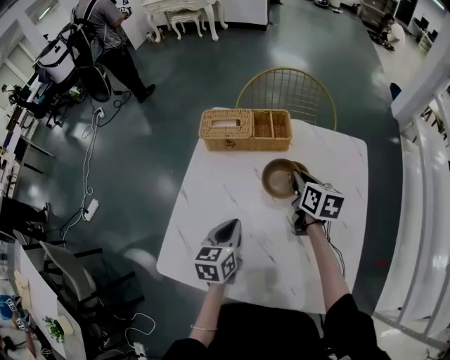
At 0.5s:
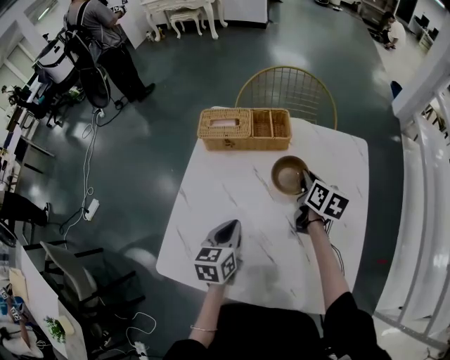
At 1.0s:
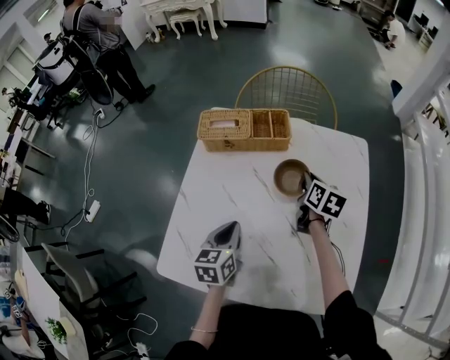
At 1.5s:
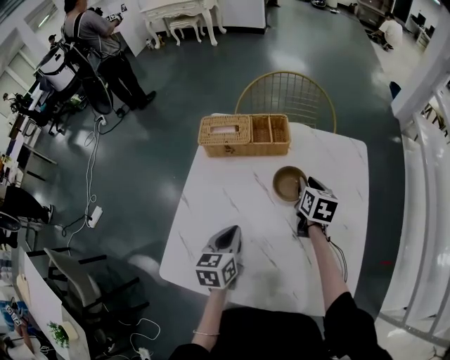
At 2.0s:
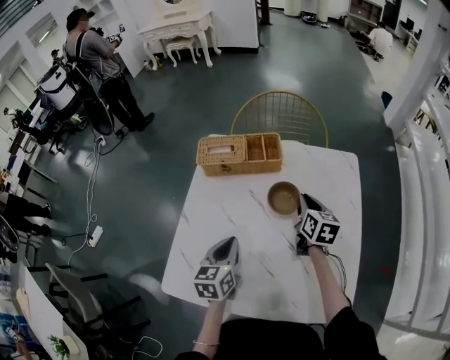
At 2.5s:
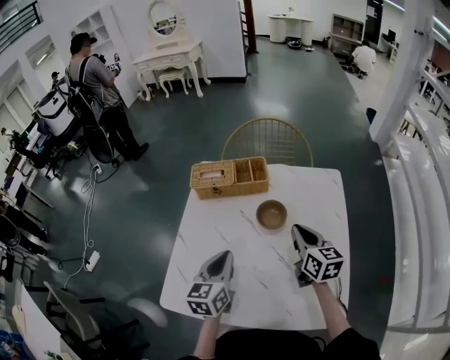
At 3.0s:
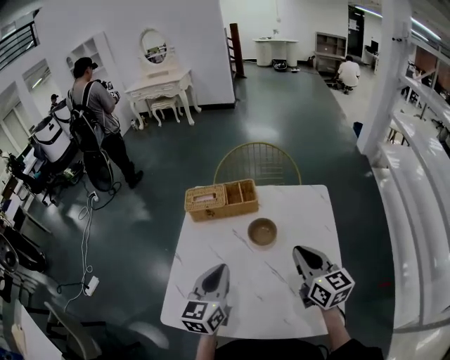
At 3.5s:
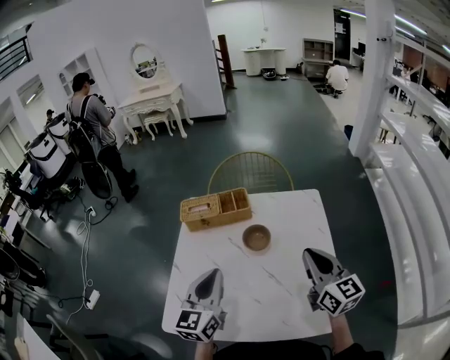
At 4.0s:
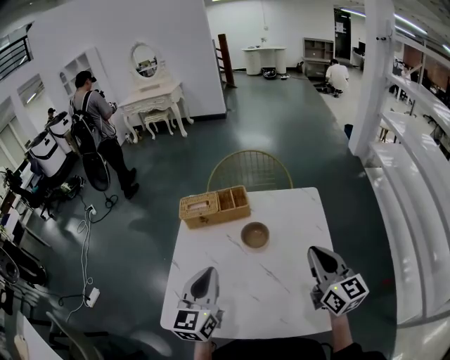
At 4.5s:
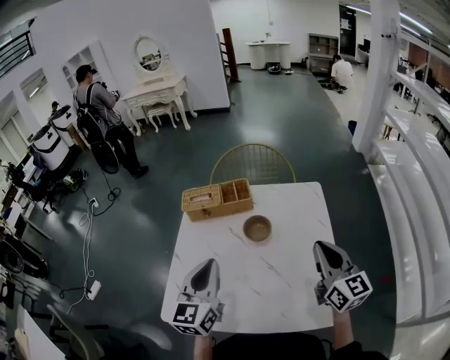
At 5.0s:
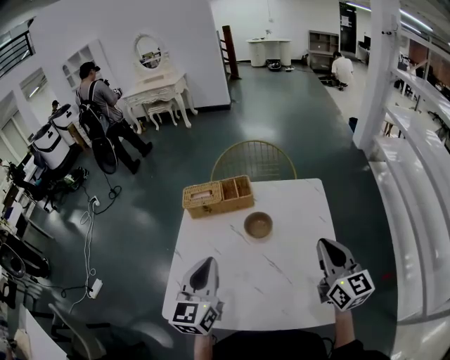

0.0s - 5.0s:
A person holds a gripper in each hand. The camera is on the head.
0.0s - 2.5s: The left gripper moves upward, some 10 cm, while the right gripper moves backward and upward, some 10 cm.
2.5s - 5.0s: The left gripper moves upward and backward, some 15 cm; the right gripper shifts approximately 20 cm backward, upward and to the right, and changes its angle by some 20 degrees.

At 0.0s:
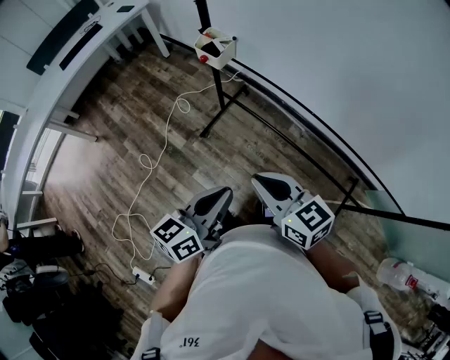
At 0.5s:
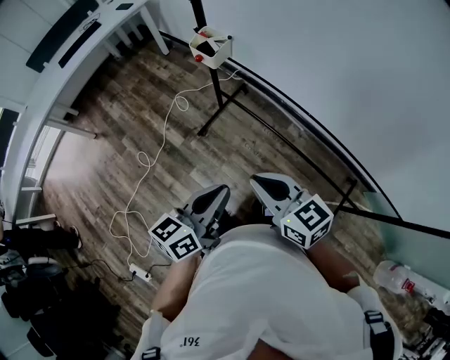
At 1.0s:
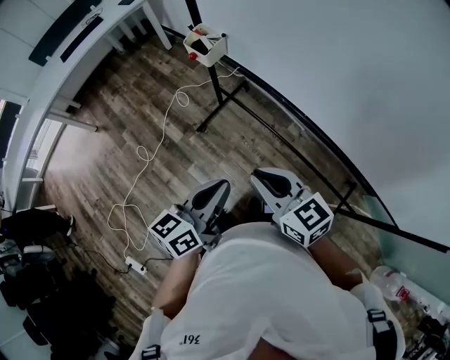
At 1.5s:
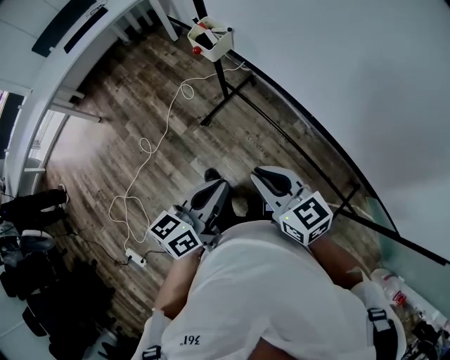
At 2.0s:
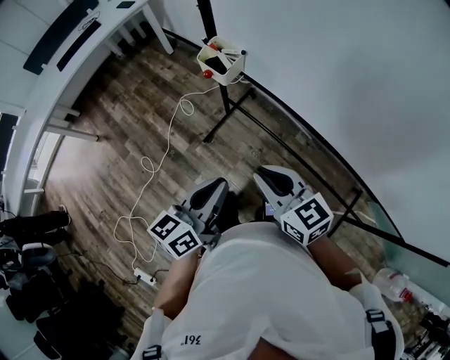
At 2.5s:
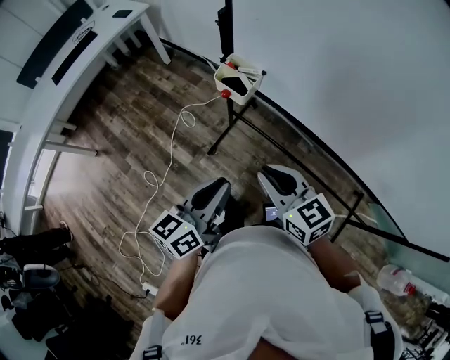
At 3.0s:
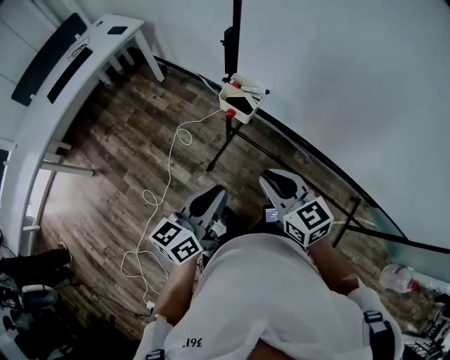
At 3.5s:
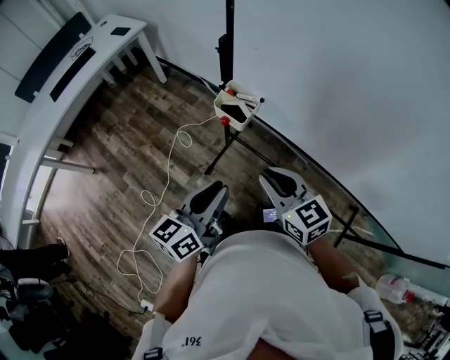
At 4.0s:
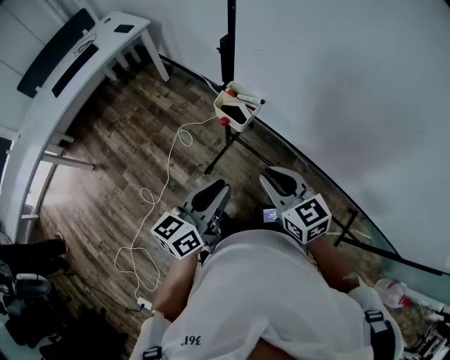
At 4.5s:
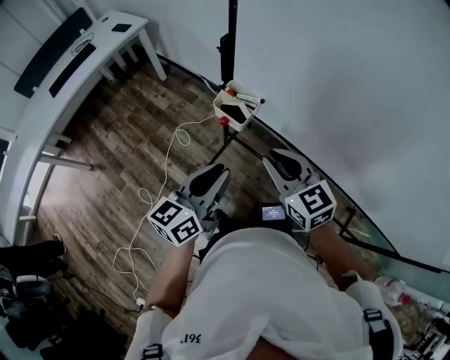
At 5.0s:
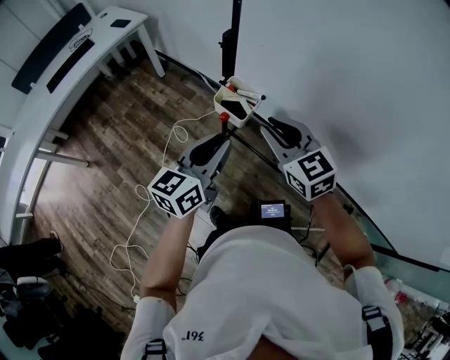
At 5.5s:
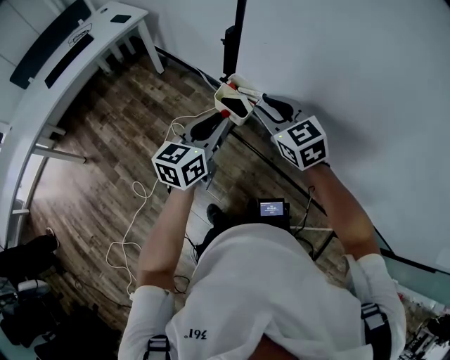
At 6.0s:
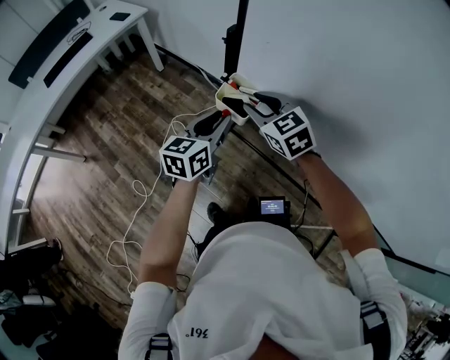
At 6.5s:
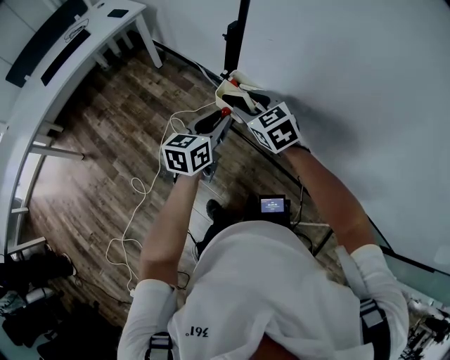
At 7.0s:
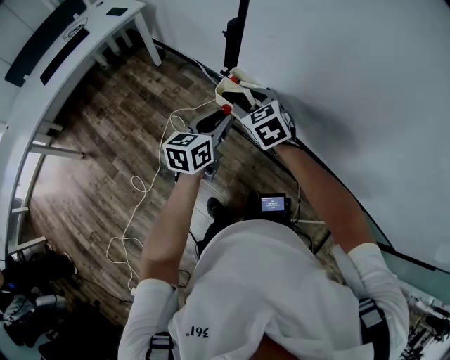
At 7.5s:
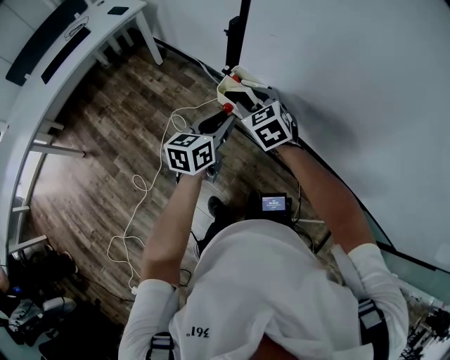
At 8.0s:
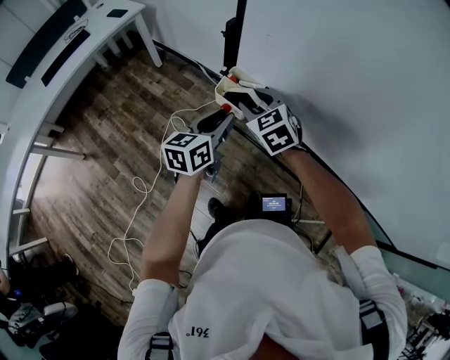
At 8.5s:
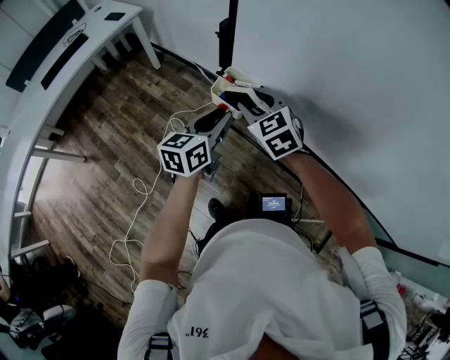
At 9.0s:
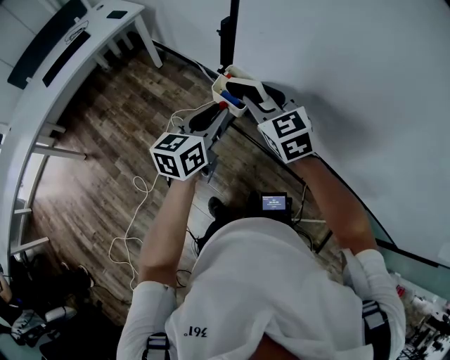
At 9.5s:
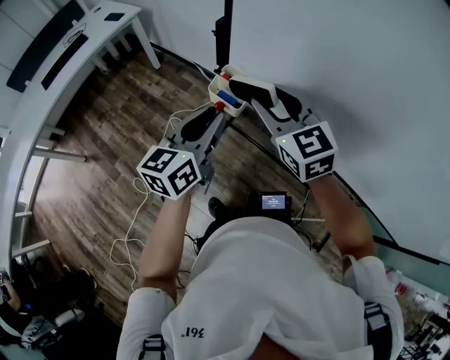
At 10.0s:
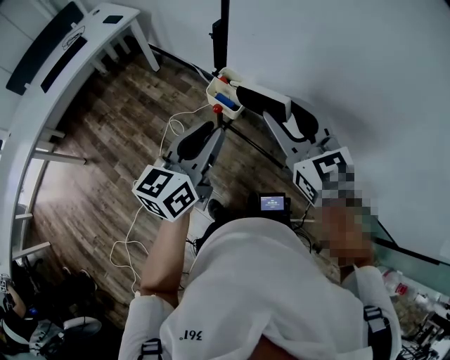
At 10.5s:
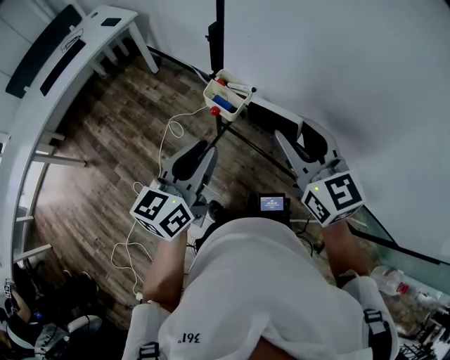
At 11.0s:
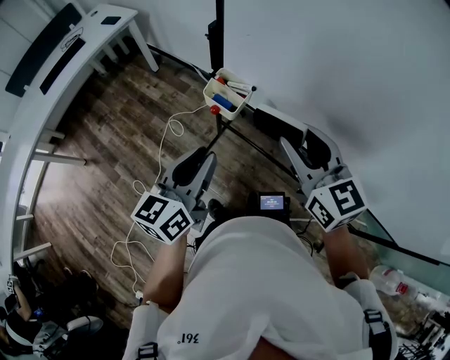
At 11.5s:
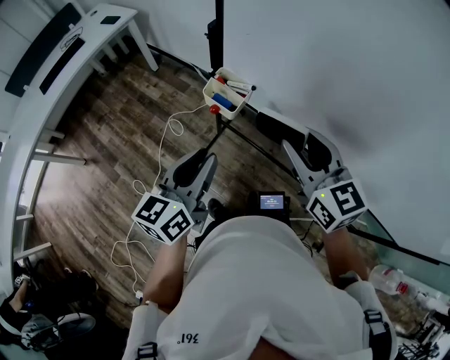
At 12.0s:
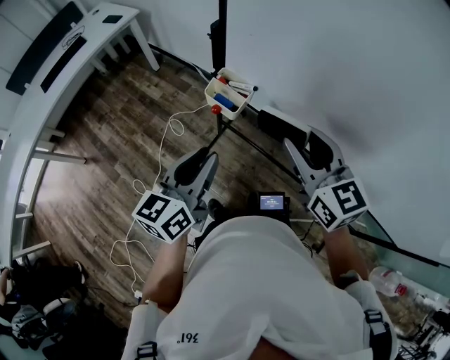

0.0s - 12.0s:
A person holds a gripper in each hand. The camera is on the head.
0.0s - 2.0s: The grippers both shift forward by roughly 15 cm.
2.0s - 4.0s: The left gripper goes approximately 15 cm forward and to the left. The right gripper heads forward, covering about 15 cm.
4.0s - 6.0s: Both grippers travel together forward, roughly 15 cm.
8.0s - 10.0s: Both grippers travel together upward and backward, approximately 15 cm. The right gripper changes its angle by roughly 30 degrees.
10.0s - 12.0s: The right gripper heads to the right, covering approximately 5 cm; the left gripper moves approximately 5 cm.

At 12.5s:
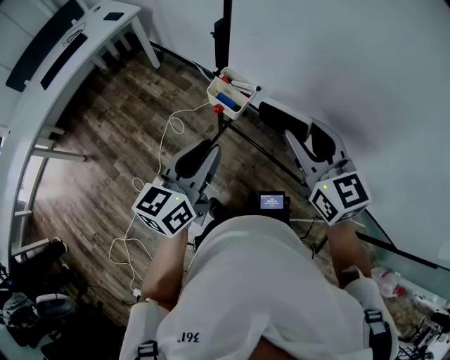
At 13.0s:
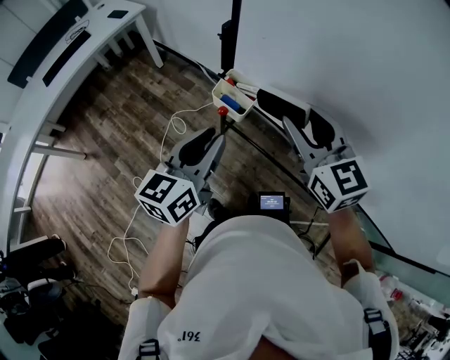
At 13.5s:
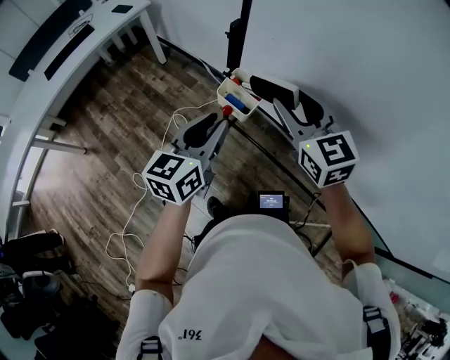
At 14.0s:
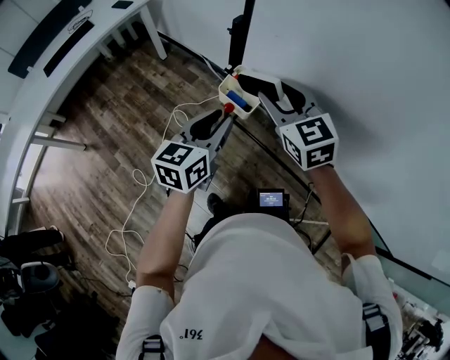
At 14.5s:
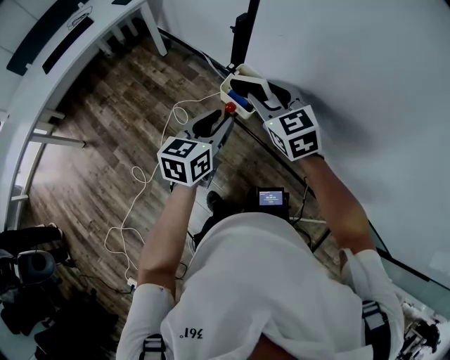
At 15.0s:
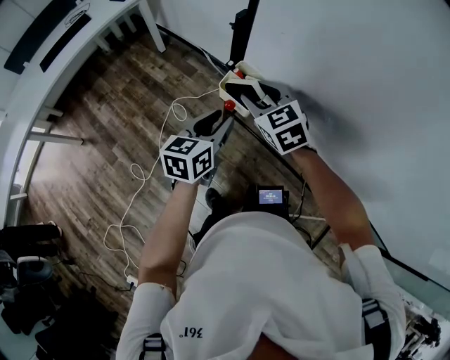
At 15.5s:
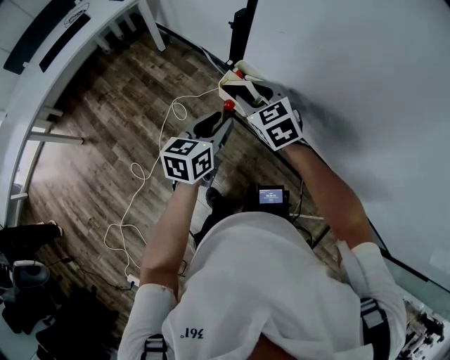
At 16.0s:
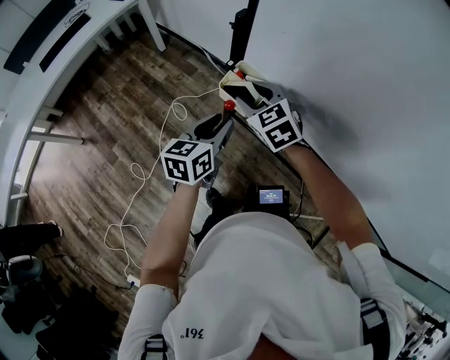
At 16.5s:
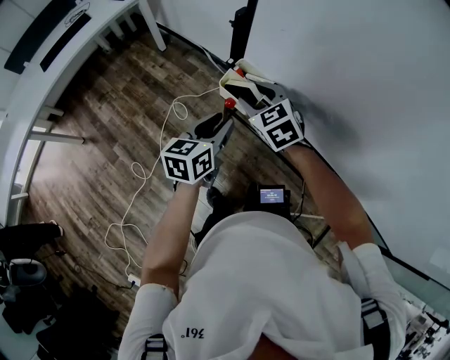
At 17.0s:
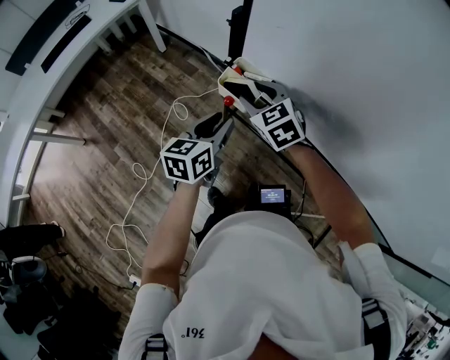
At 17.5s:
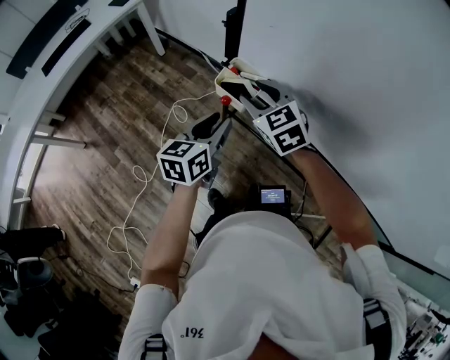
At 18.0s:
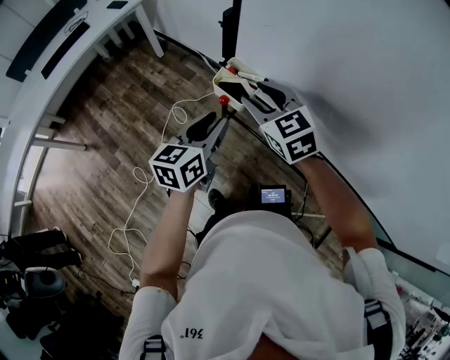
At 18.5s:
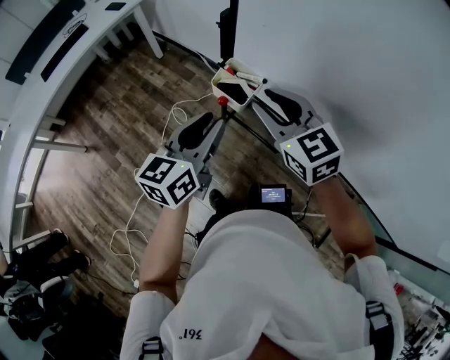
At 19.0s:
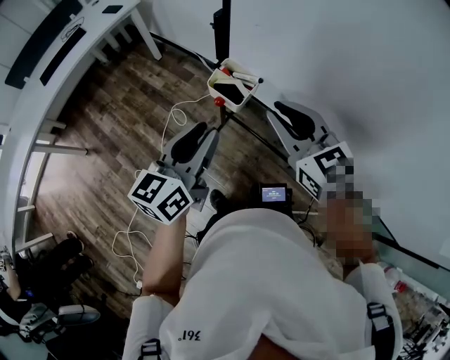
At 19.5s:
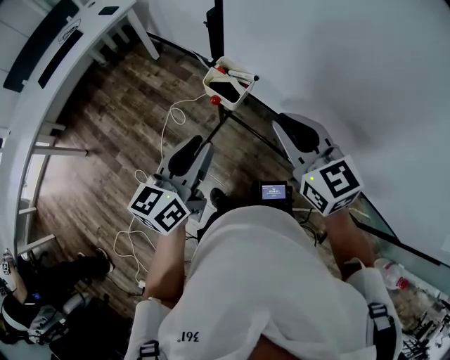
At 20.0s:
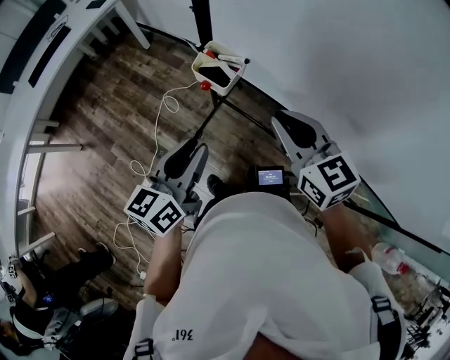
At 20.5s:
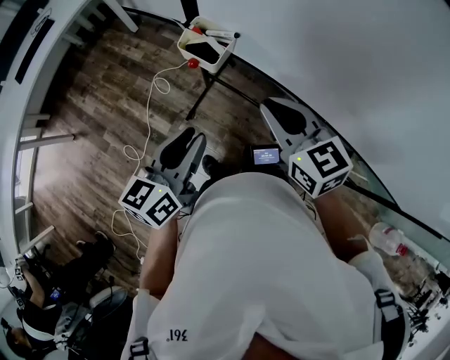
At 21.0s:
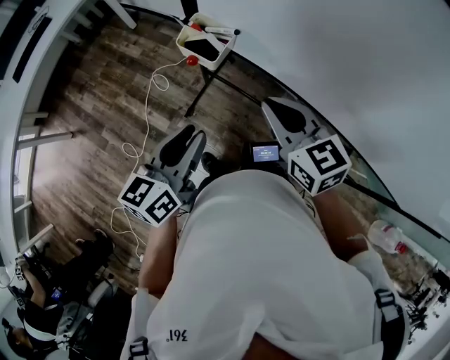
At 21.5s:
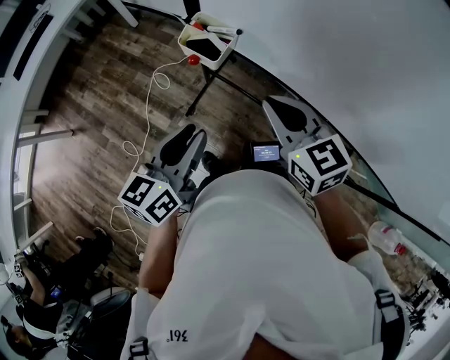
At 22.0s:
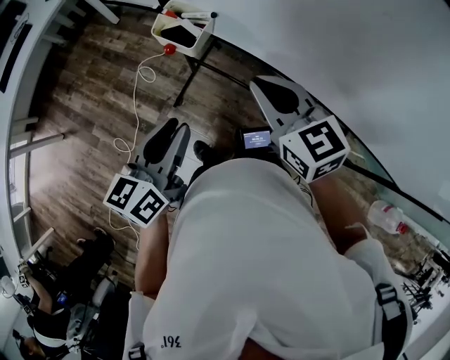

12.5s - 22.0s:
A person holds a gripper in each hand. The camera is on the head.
12.5s - 14.5s: The right gripper heads forward, to the left and downward, covering some 20 cm, and turns by approximately 20 degrees. Meanwhile the left gripper moves forward and downward, about 10 cm.
14.5s - 16.5s: The right gripper heads downward, covering approximately 5 cm.
16.5s - 18.0s: The right gripper moves upward, approximately 5 cm.
18.0s - 20.0s: The left gripper goes approximately 10 cm backward, while the right gripper goes roughly 15 cm backward and to the right, and closes.
20.0s - 22.0s: The grippers move only a little.
